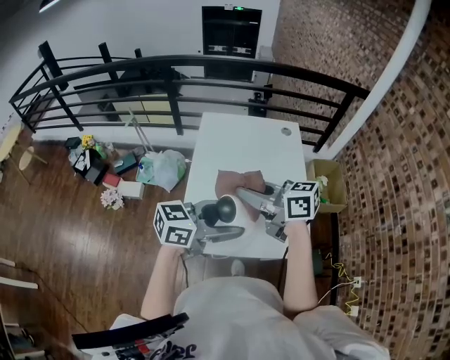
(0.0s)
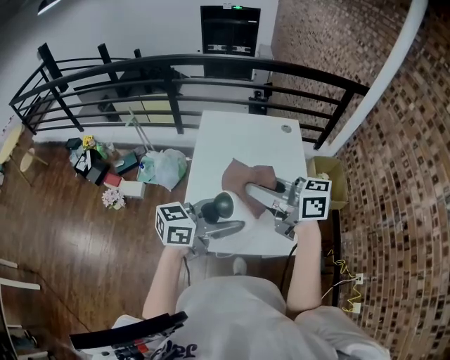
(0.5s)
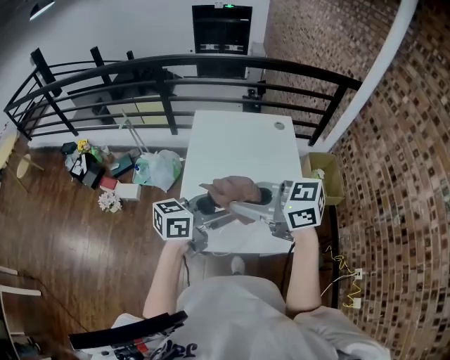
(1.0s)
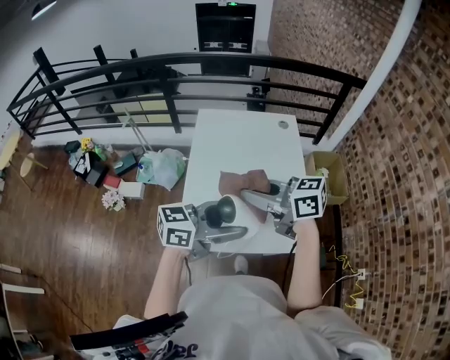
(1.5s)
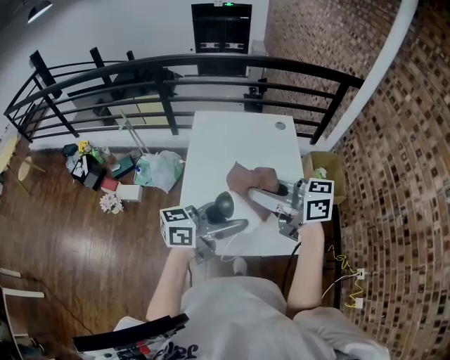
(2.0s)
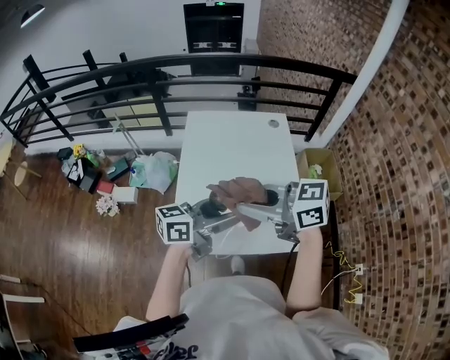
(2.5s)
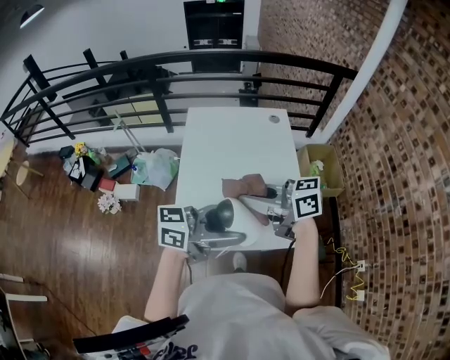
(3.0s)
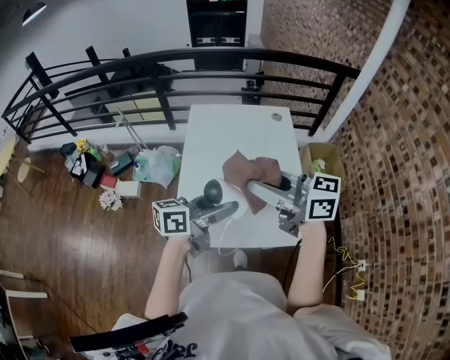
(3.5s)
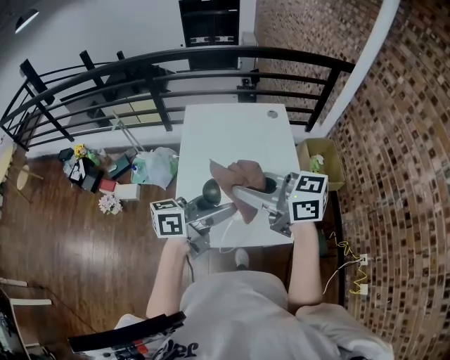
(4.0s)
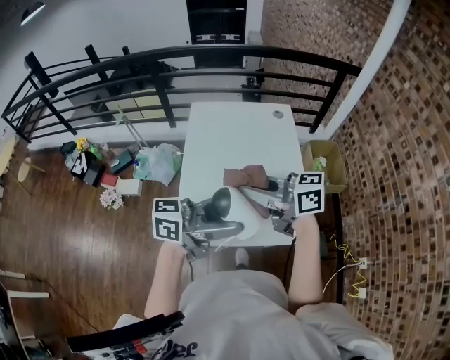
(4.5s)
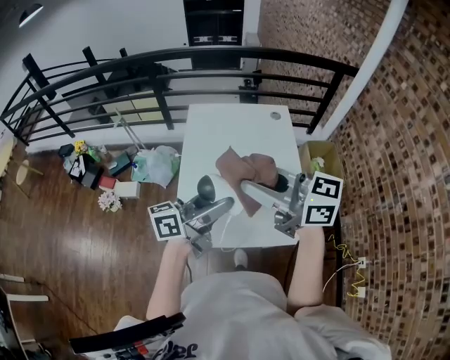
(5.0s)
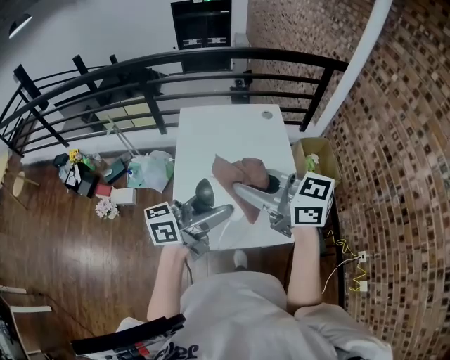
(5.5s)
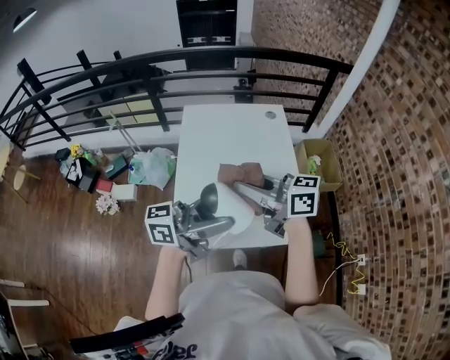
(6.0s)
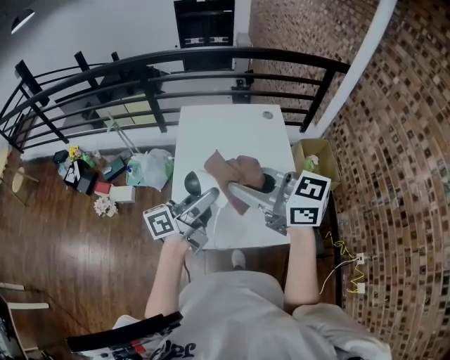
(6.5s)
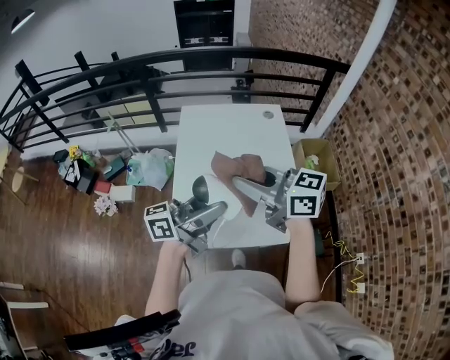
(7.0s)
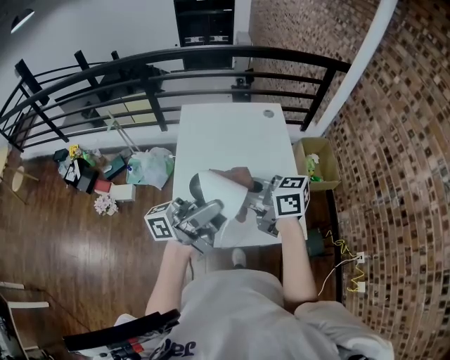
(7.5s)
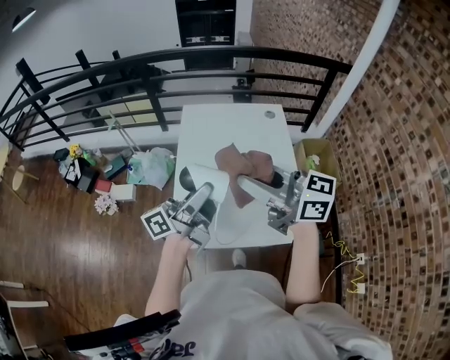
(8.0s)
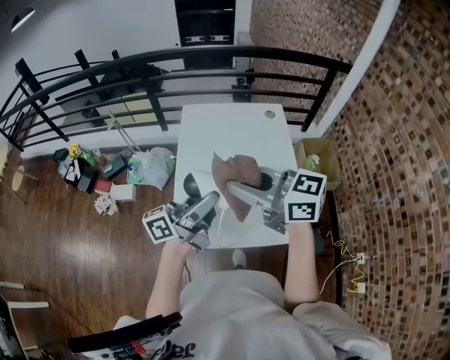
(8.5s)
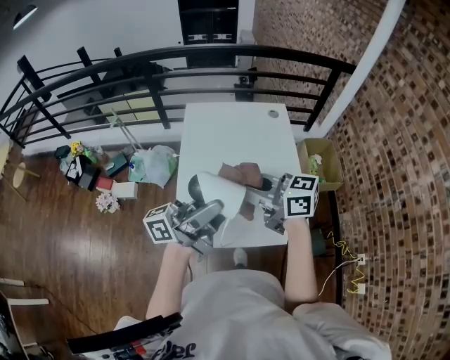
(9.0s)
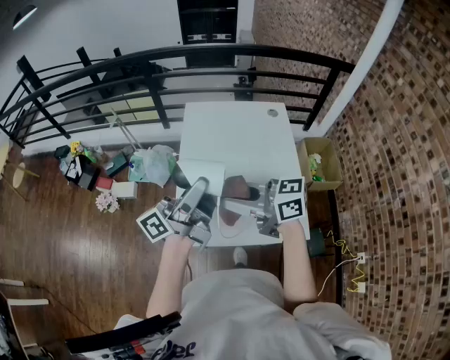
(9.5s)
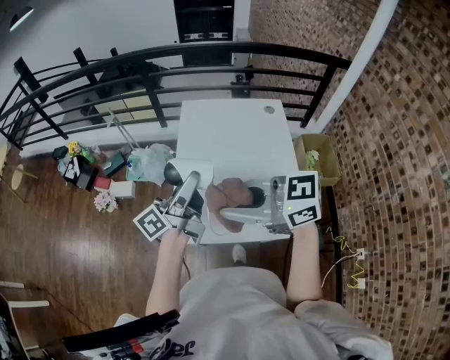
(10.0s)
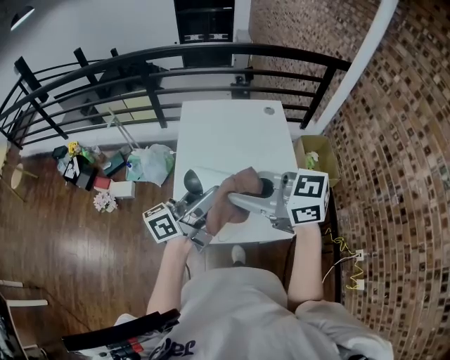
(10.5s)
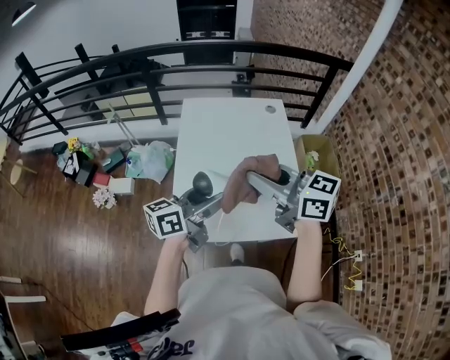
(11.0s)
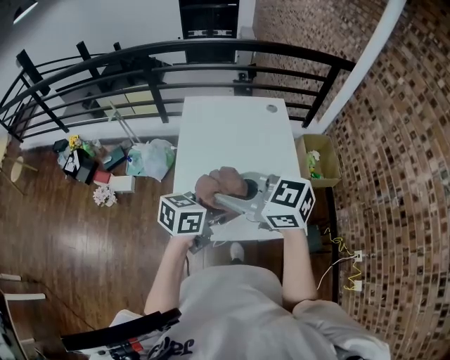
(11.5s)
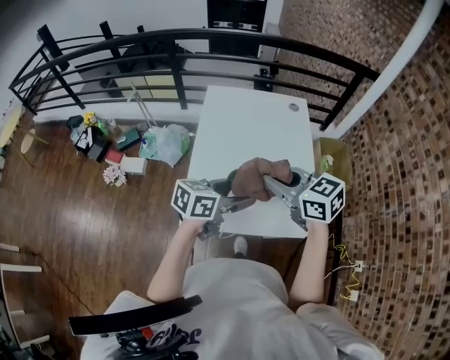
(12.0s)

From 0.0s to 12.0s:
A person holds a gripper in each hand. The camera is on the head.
From 0.0s to 2.0s: The right gripper ends up some 5 cm from where it was.
From 2.0s to 4.0s: The grippers move only a little.
From 4.0s to 6.0s: The left gripper heads upward, covering approximately 5 cm.
From 6.0s to 8.0s: The left gripper moves up and down over roughly 10 cm, changing direction 2 times, and turns by roughly 30 degrees. Meanwhile the right gripper goes up and down, some 10 cm each way, reversing 2 times.
From 8.0s to 10.0s: The right gripper changes place by some 10 cm, and turns by approximately 30 degrees.
From 10.0s to 12.0s: The left gripper moves approximately 15 cm, and angles its fingers downward, by about 40 degrees. Meanwhile the right gripper ends up some 15 cm from where it was, and changes its angle by about 30 degrees.

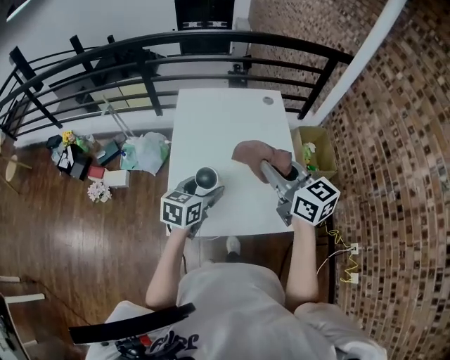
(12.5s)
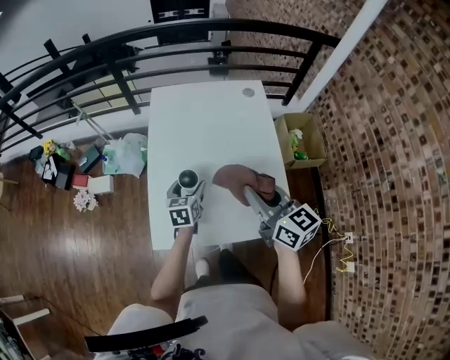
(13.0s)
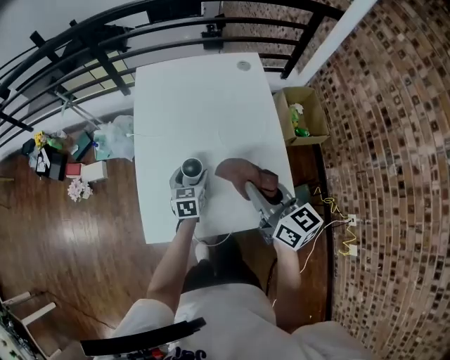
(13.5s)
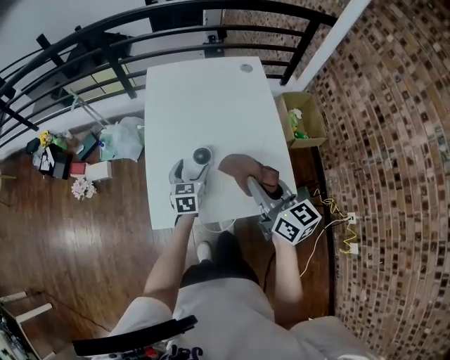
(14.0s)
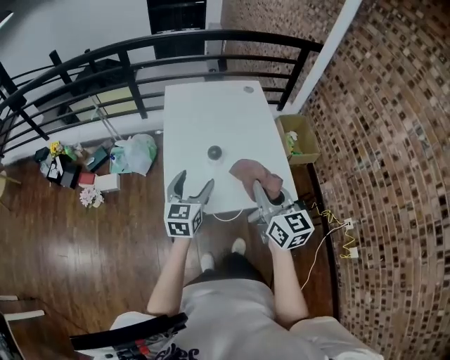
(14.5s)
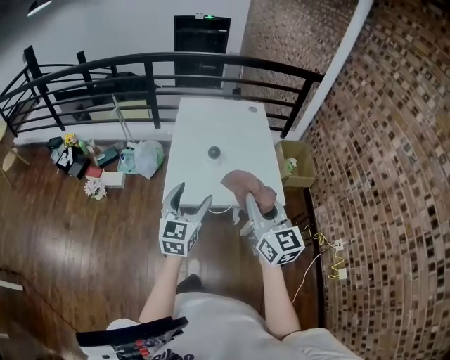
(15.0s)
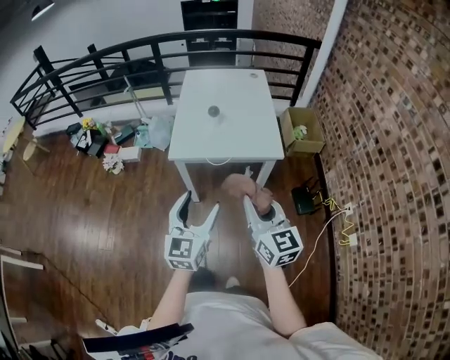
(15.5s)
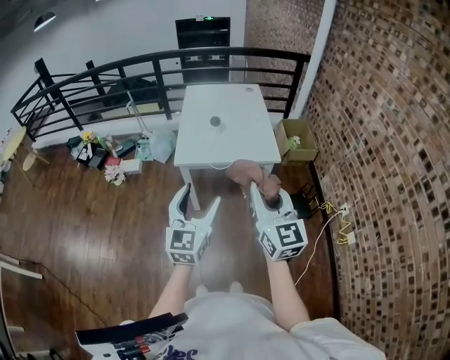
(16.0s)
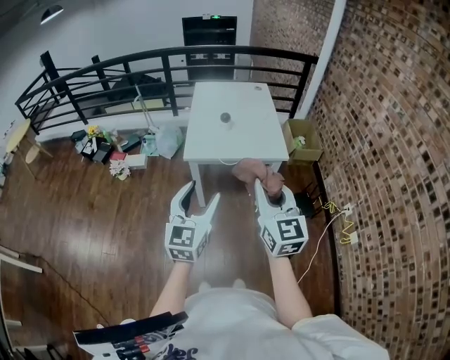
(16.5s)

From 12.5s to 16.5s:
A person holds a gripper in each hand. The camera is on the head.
From 12.5s to 14.5s: The left gripper heads backward, covering roughly 10 cm, travels downward and back again, some 20 cm each way, and swivels roughly 20 degrees. The right gripper goes about 15 cm backward, and rotates approximately 20 degrees.
From 14.5s to 16.5s: The two grippers go approximately 40 cm backward.

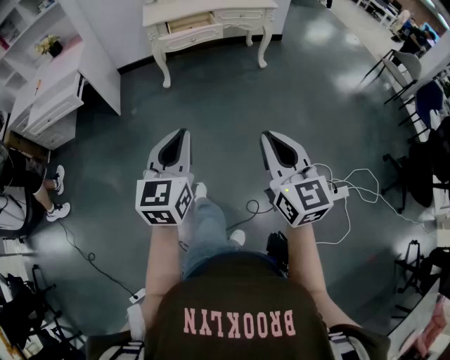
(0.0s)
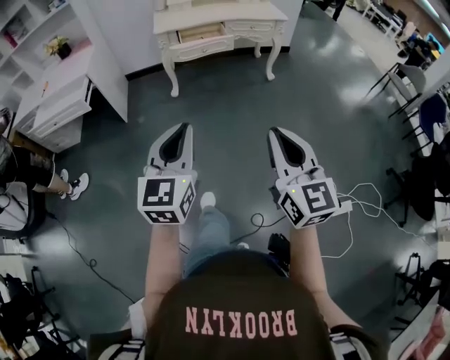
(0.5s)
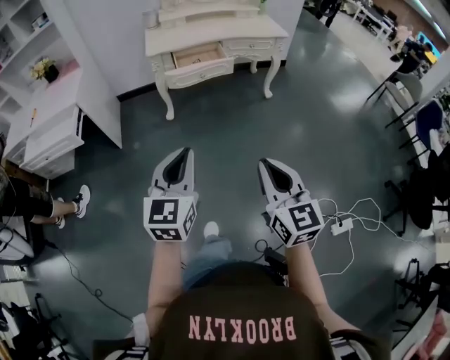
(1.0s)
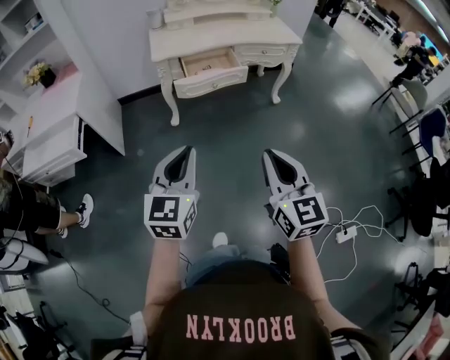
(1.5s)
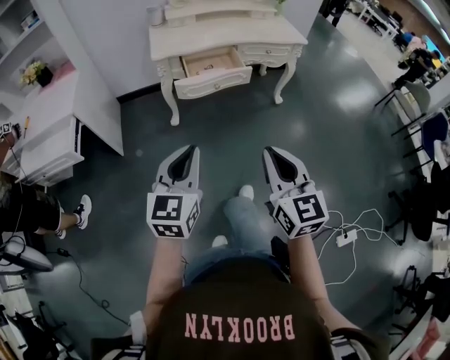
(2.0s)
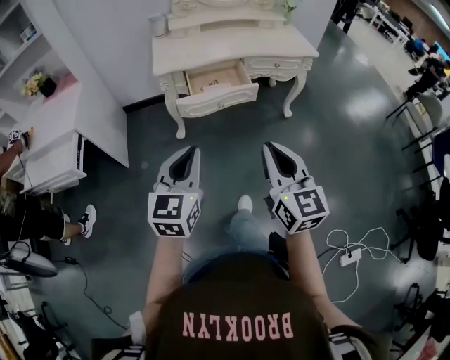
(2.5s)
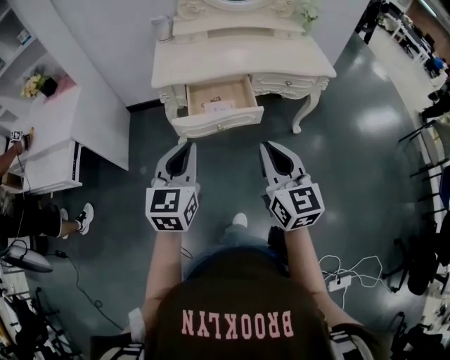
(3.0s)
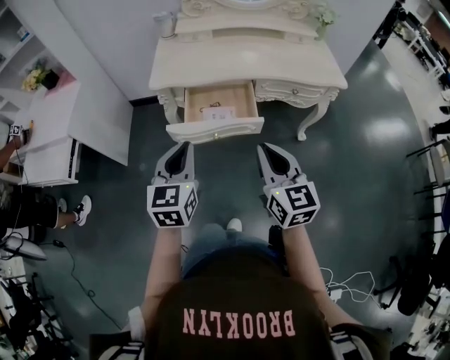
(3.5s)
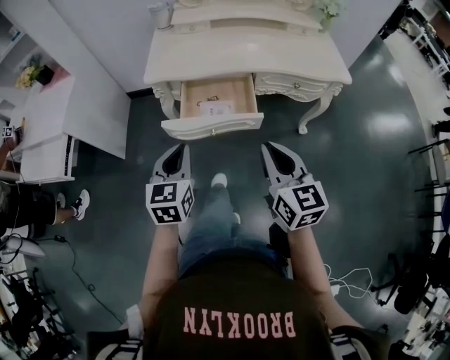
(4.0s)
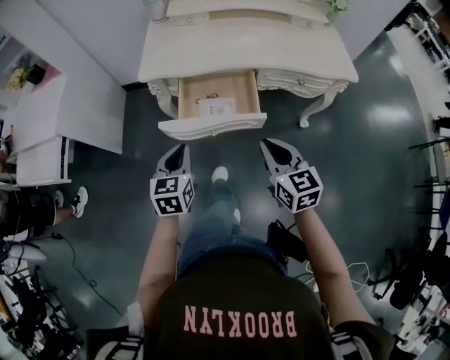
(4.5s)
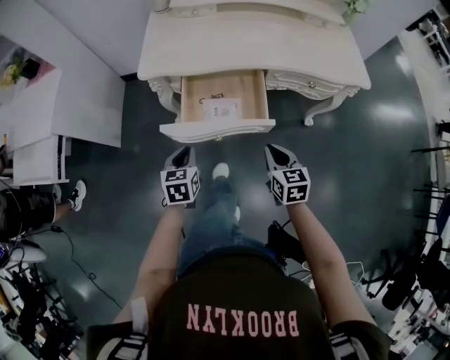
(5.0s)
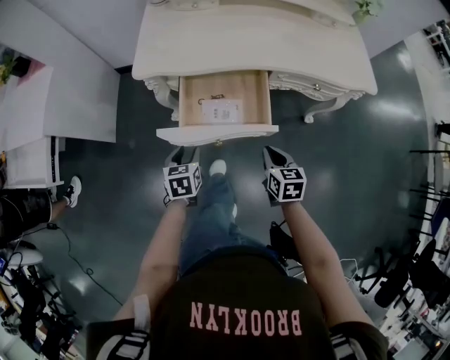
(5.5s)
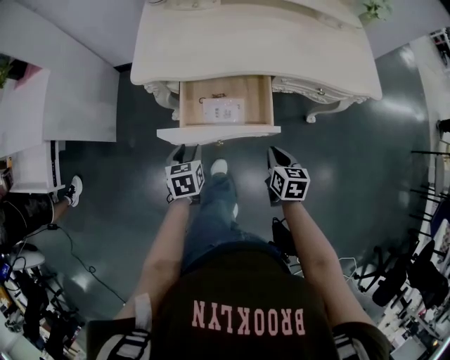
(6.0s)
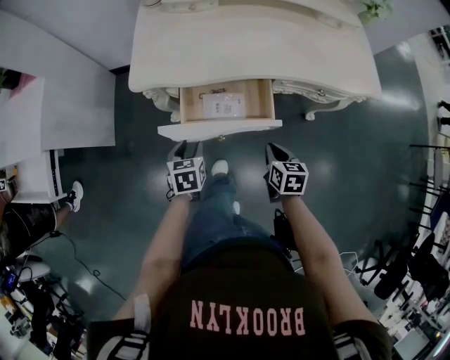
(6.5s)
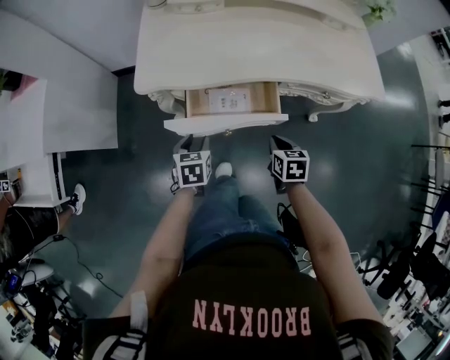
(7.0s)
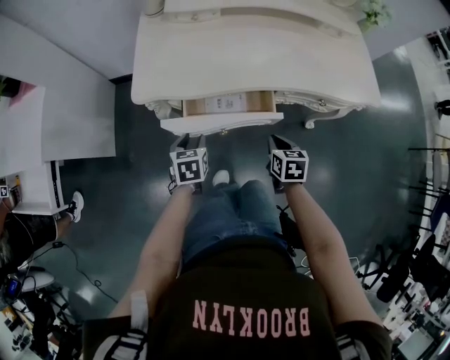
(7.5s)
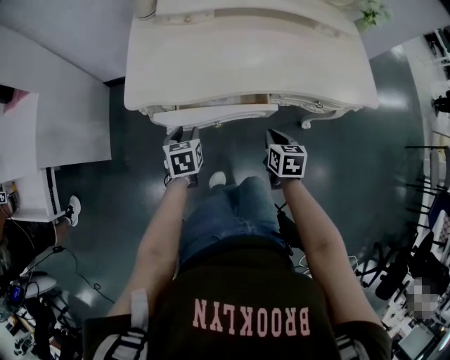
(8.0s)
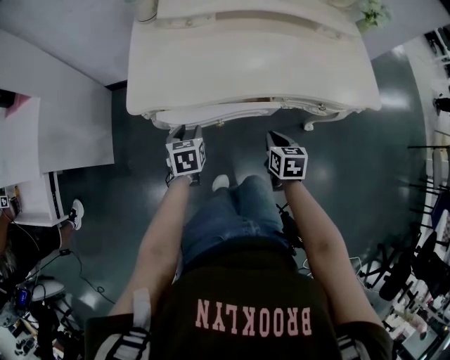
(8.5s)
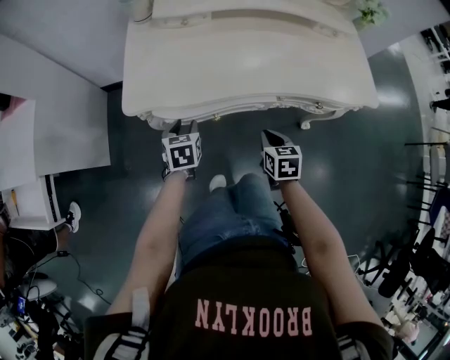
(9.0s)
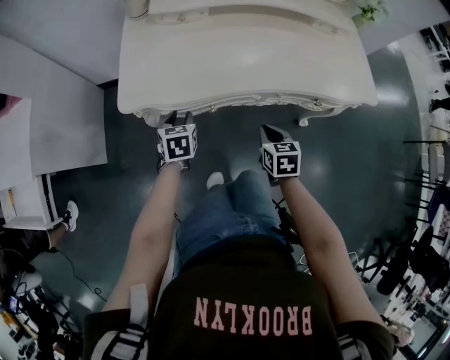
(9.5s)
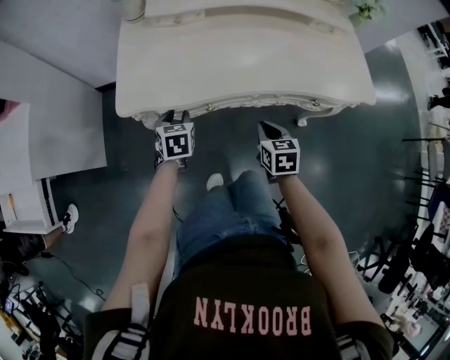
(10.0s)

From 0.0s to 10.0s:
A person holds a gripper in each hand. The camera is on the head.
From 0.0s to 2.0s: Both grippers move forward, some 35 cm.
From 2.0s to 4.0s: The grippers both shift forward by some 35 cm. The left gripper swivels about 30 degrees.
From 4.0s to 6.0s: The grippers both shift downward and forward by about 30 cm. The left gripper rotates some 30 degrees, and opens; the right gripper angles its fingers downward, by approximately 30 degrees.
From 6.0s to 8.0s: Both grippers travel together forward, roughly 15 cm.
From 8.0s to 10.0s: The left gripper is displaced forward by some 5 cm.

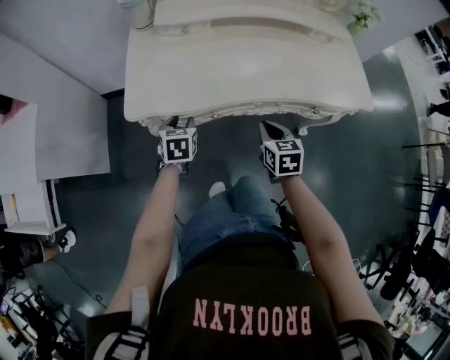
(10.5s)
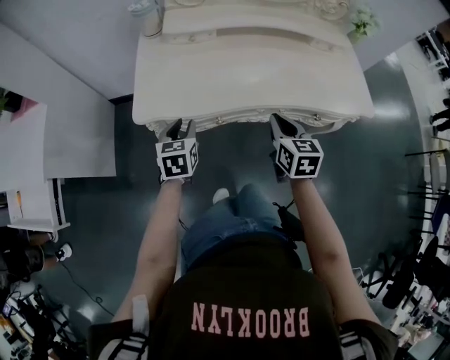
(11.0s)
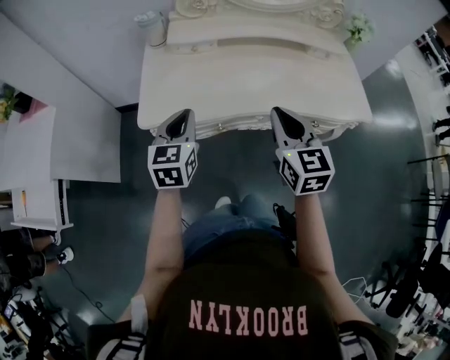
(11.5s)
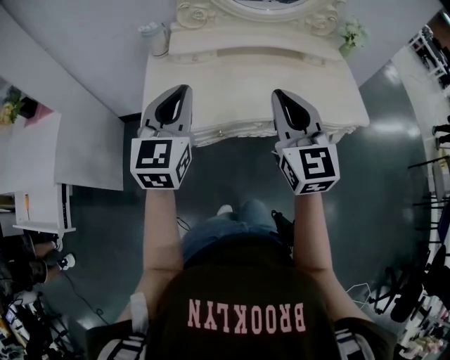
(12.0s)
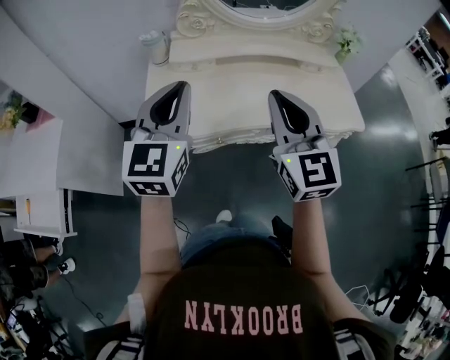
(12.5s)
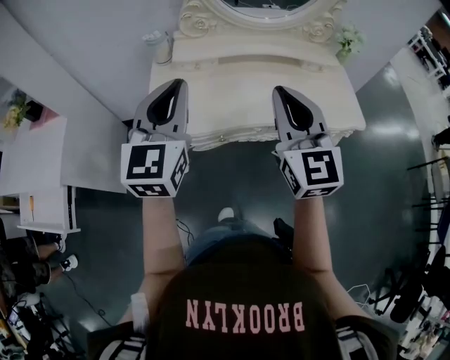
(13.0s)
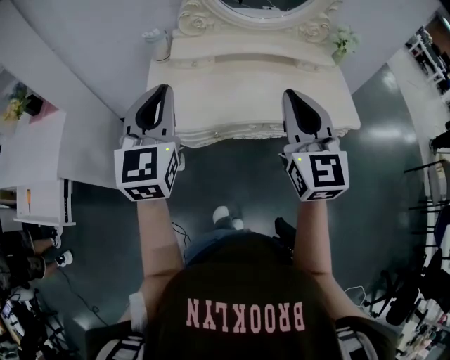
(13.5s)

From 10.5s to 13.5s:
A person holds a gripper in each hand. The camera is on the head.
From 10.5s to 12.0s: Both grippers move upward, about 35 cm. The left gripper tips its fingers upward by about 40 degrees, and closes its fingers. The right gripper points its fingers some 40 degrees further upward.
From 12.0s to 13.5s: Both grippers move upward, roughly 5 cm.
